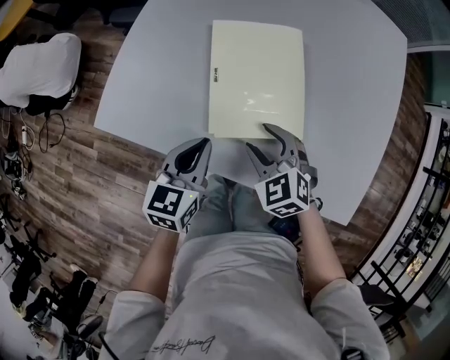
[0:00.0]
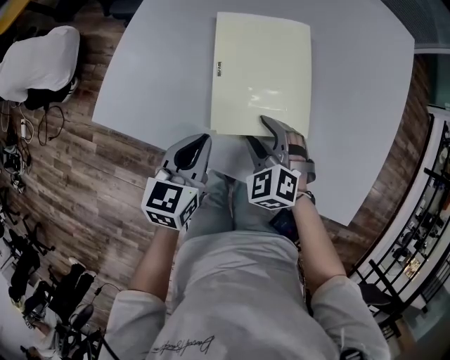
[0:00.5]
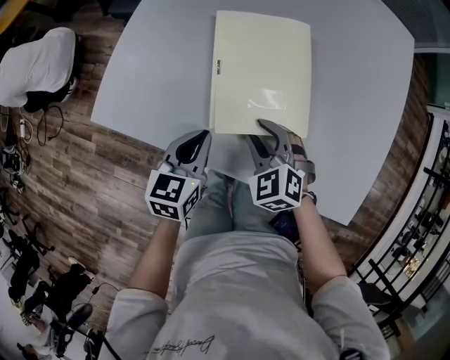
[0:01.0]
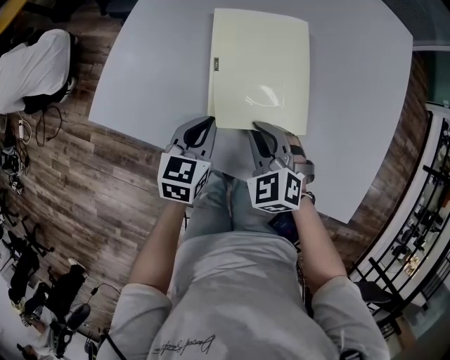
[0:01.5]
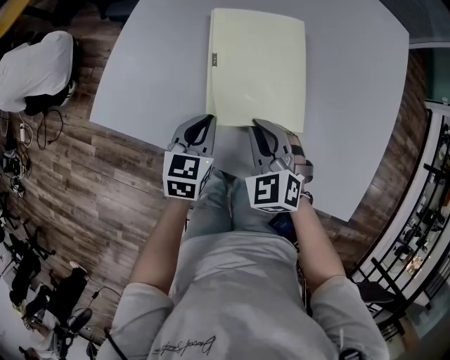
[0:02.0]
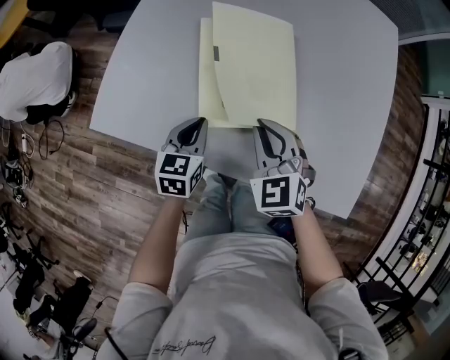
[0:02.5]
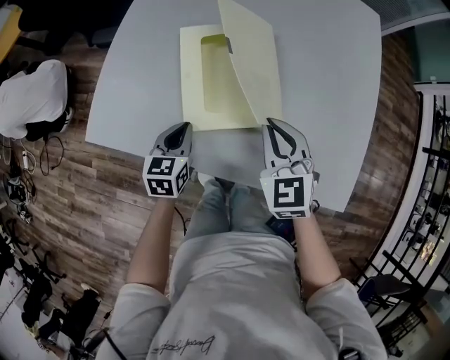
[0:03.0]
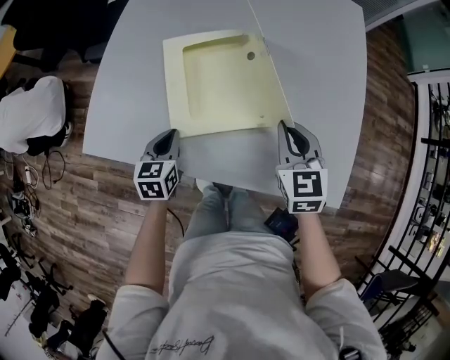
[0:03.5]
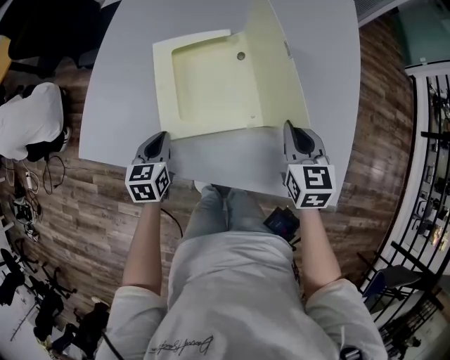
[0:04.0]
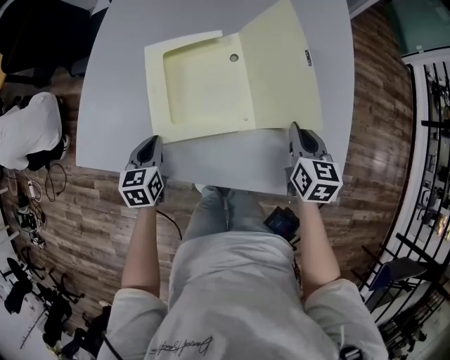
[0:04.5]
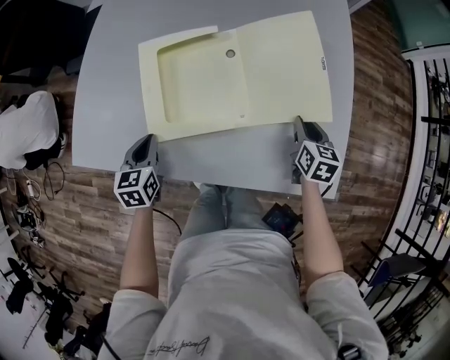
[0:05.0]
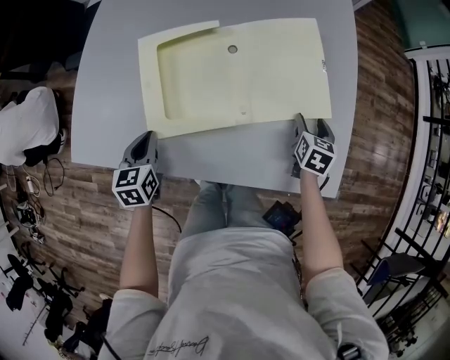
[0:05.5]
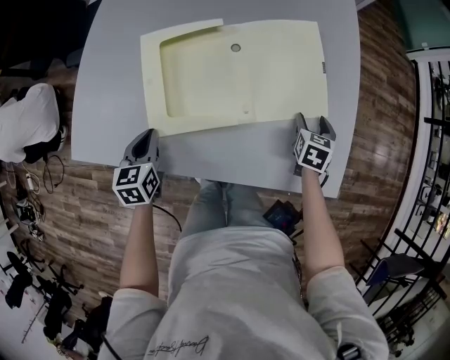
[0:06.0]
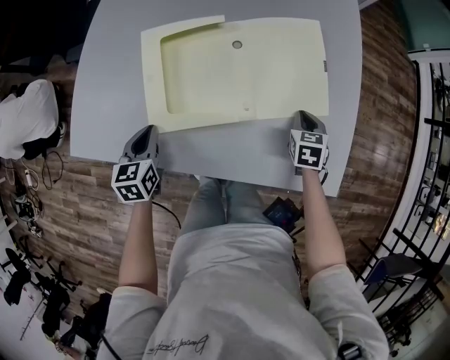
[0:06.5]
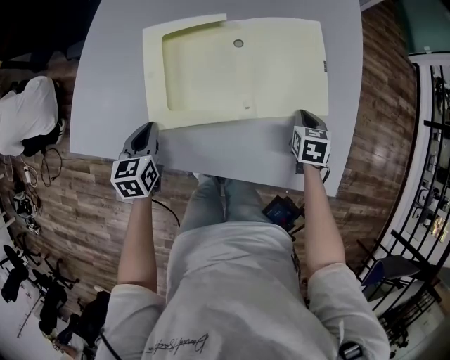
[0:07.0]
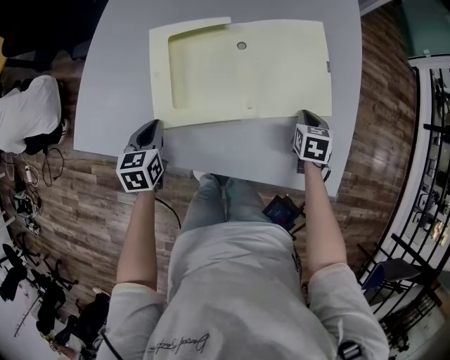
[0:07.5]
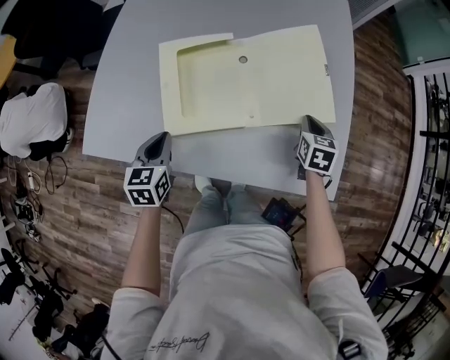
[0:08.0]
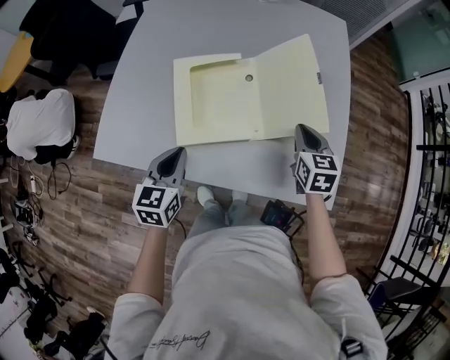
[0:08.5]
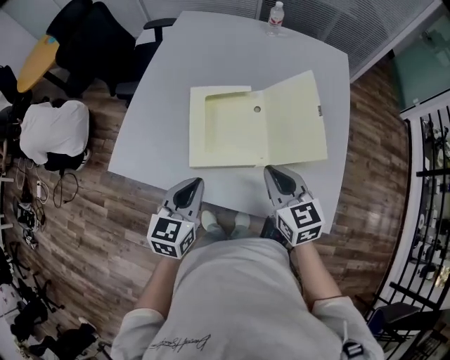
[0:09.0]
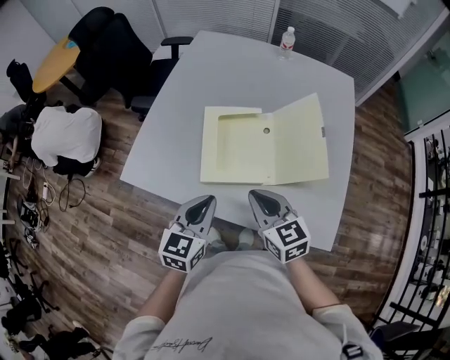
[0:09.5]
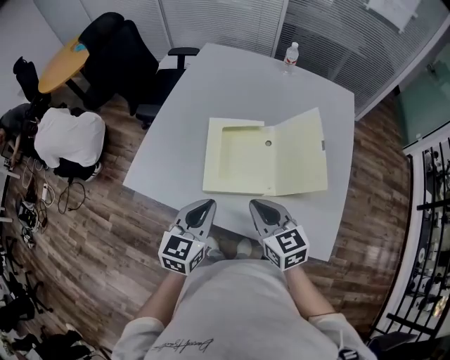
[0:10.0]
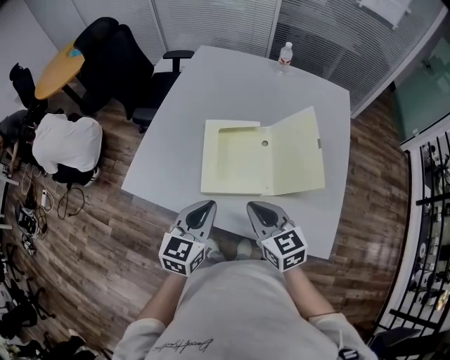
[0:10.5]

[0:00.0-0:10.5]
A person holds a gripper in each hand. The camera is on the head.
0:00.0 to 0:02.0: The right gripper closes its fingers, while the left gripper moves downward, about 5 cm.
0:02.0 to 0:04.0: The right gripper heads to the right, covering about 20 cm, and rotates around the line of its fingers by about 40 degrees, clockwise from behind.
0:04.0 to 0:06.5: The right gripper shifts approximately 15 cm downward and to the right, swivels about 30 degrees, and opens, then closes once more.
0:06.5 to 0:08.5: The left gripper is displaced upward and to the right by some 10 cm. The right gripper shifts some 15 cm upward.
0:08.5 to 0:10.5: The right gripper goes some 20 cm to the left and upward, and changes its angle by approximately 30 degrees, while the left gripper moves upward, approximately 10 cm.

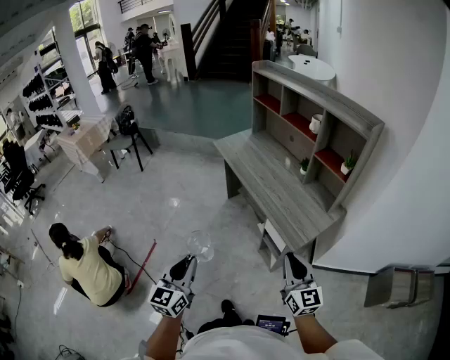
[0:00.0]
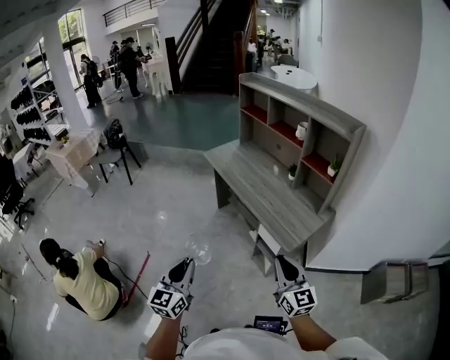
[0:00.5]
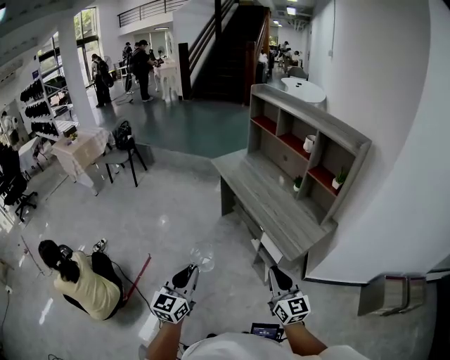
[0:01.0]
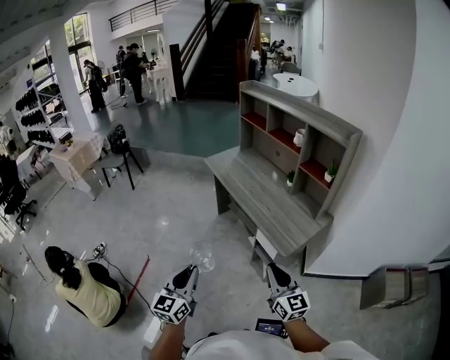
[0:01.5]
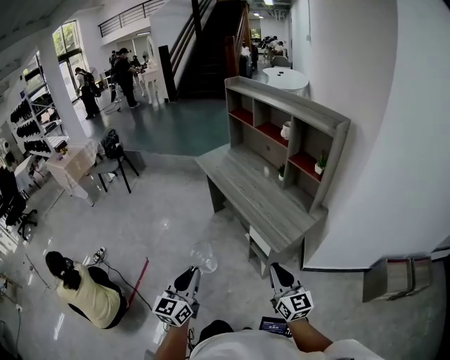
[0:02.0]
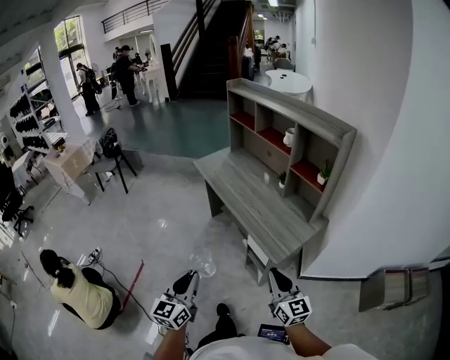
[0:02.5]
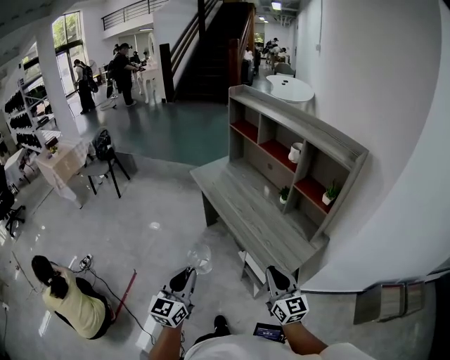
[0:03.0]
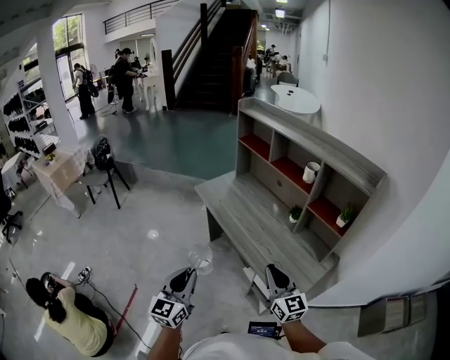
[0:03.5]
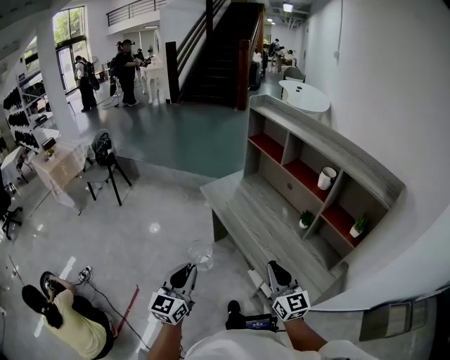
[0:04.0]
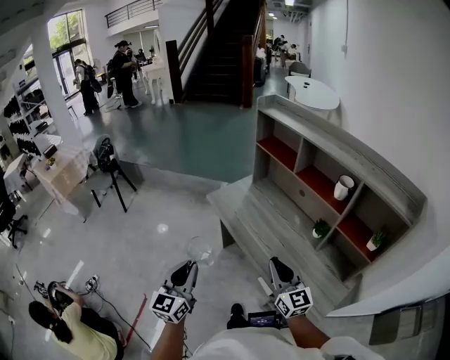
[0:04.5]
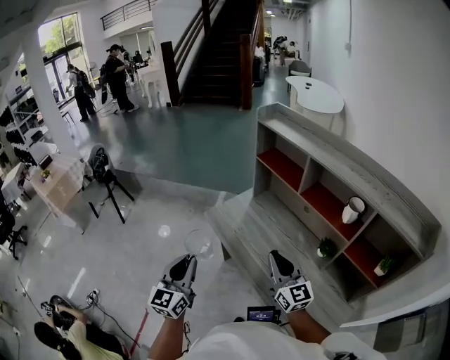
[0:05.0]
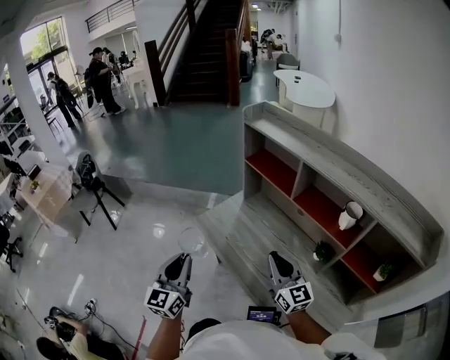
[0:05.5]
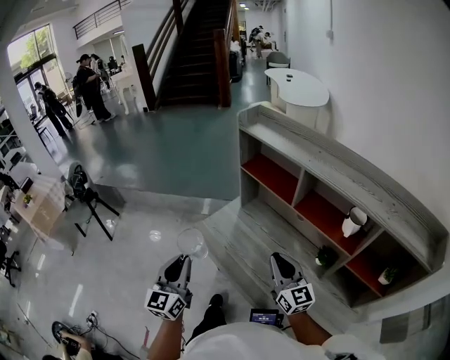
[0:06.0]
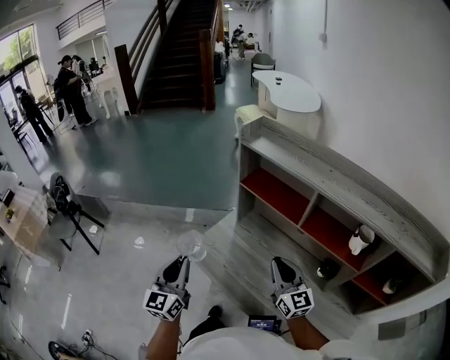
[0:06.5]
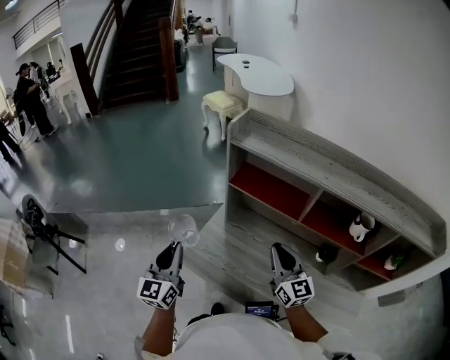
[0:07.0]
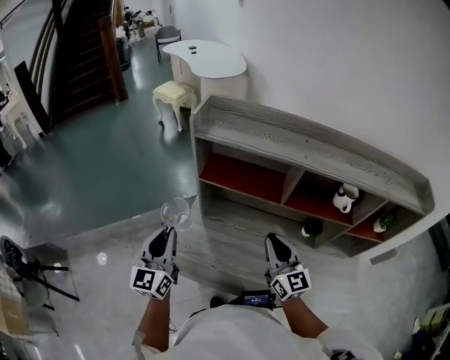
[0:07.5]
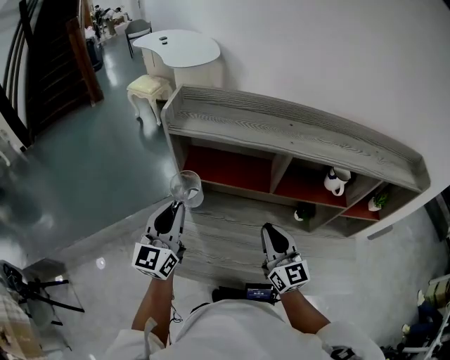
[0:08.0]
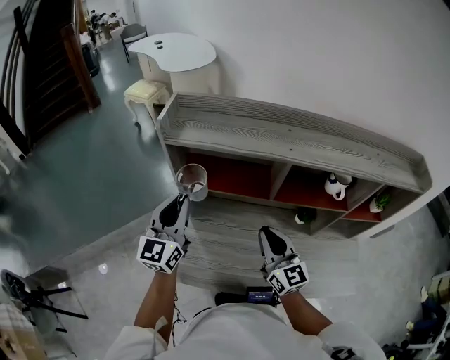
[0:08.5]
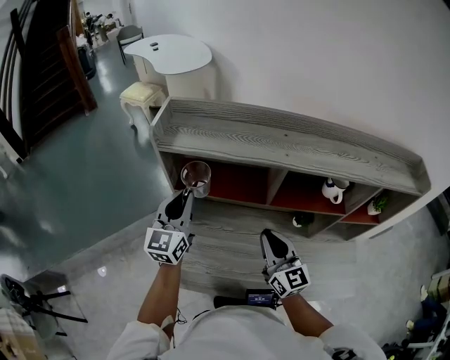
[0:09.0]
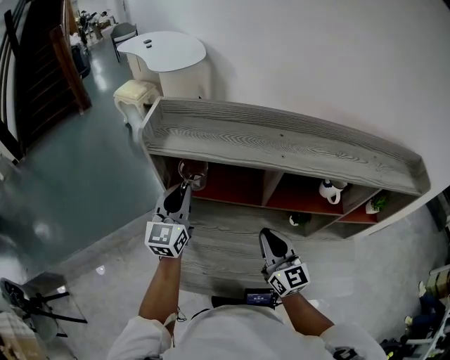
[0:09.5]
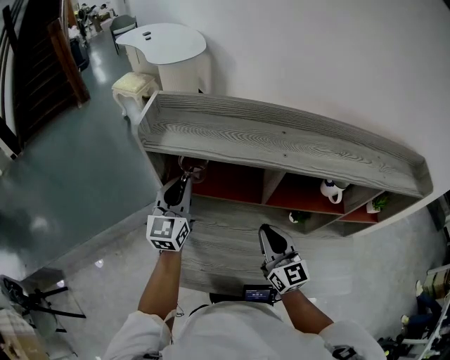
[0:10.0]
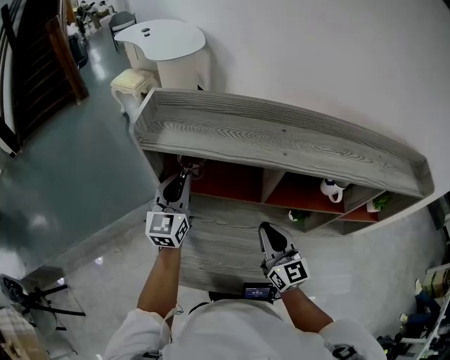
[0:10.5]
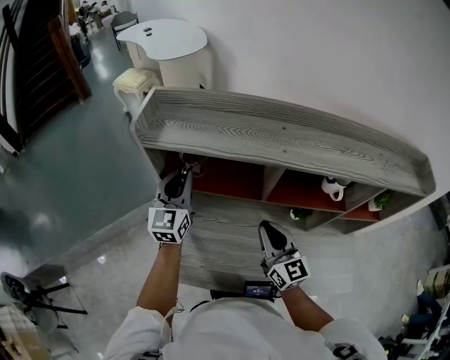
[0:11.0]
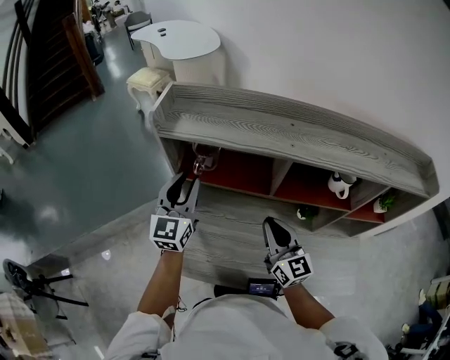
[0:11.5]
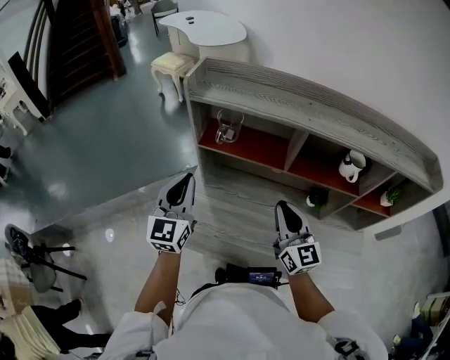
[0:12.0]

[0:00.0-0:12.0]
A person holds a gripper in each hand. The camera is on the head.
0:00.0 to 0:02.0: The left gripper heads to the right, covering roughly 5 cm. The right gripper reaches some 5 cm to the left, then returns.
0:02.0 to 0:04.0: The grippers both shift forward by roughly 35 cm.
0:04.0 to 0:06.0: The two grippers go about 35 cm forward.
0:06.0 to 0:08.0: The right gripper shifts by about 15 cm, and swivels roughly 40 degrees. The left gripper changes place by some 35 cm, and changes its angle by roughly 40 degrees.
0:08.0 to 0:10.0: The left gripper moves forward and to the right, roughly 15 cm. The right gripper moves some 5 cm.
0:10.0 to 0:12.0: The right gripper shifts roughly 5 cm backward. The left gripper is displaced backward and to the left by some 15 cm.

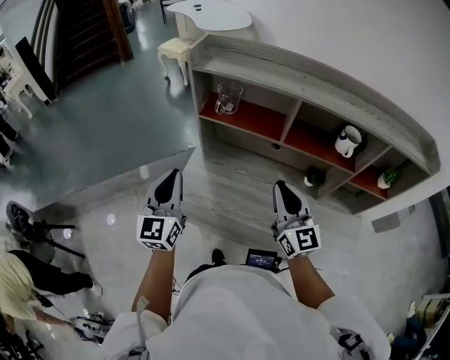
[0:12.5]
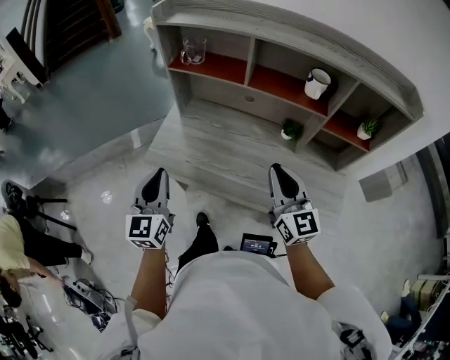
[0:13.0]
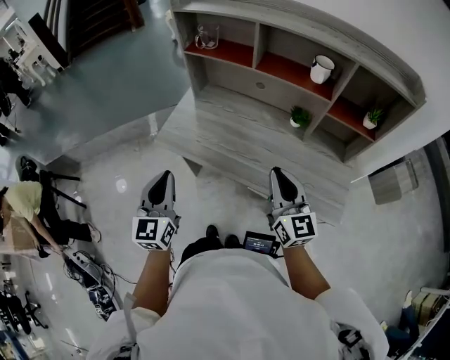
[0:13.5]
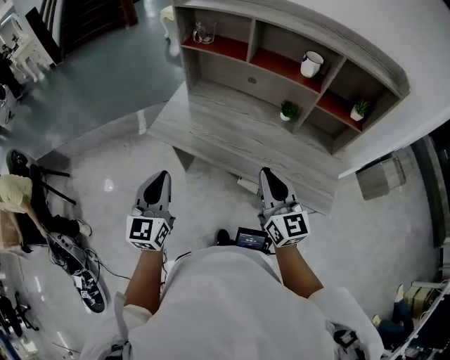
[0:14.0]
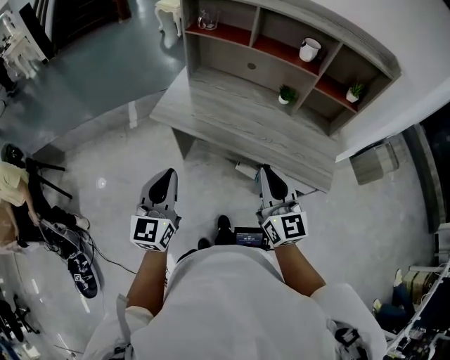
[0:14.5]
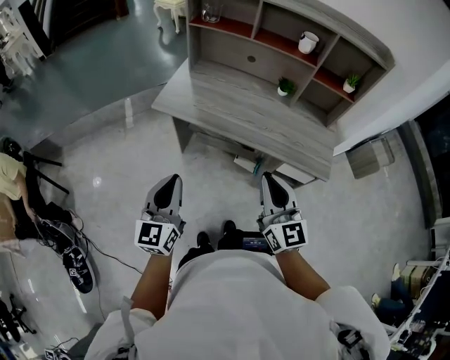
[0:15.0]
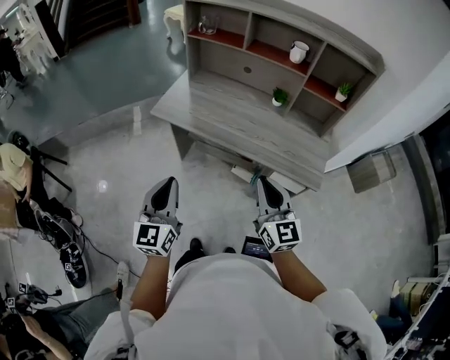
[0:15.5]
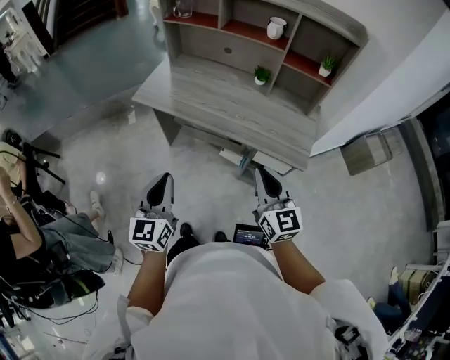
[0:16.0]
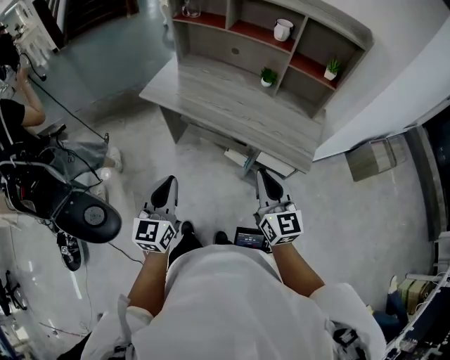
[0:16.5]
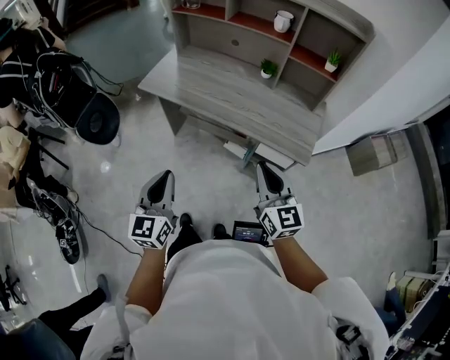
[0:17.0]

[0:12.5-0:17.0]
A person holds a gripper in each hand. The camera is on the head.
0:12.5 to 0:14.5: The grippers both shift backward by roughly 40 cm.
0:14.5 to 0:17.0: The left gripper heads backward and to the right, covering roughly 20 cm; the right gripper is displaced to the right and backward by about 20 cm.
